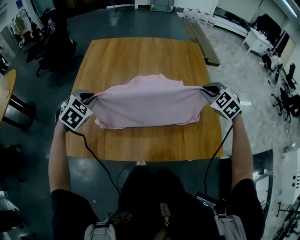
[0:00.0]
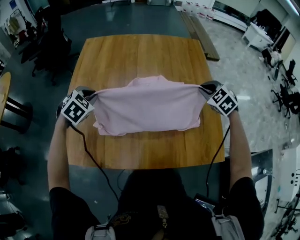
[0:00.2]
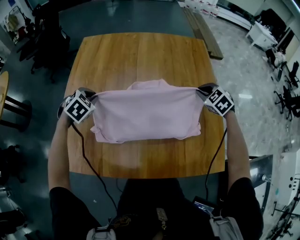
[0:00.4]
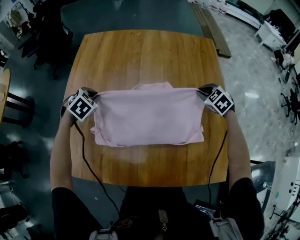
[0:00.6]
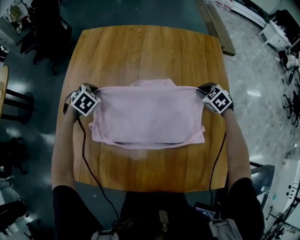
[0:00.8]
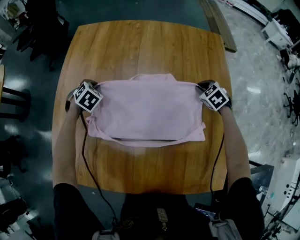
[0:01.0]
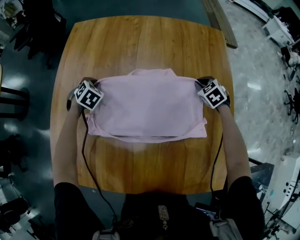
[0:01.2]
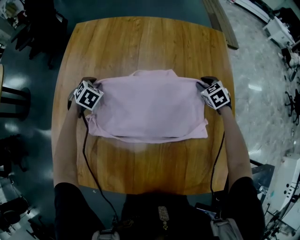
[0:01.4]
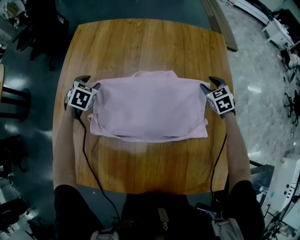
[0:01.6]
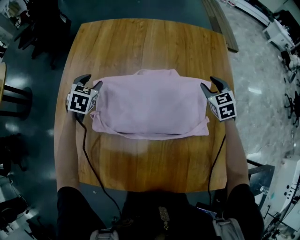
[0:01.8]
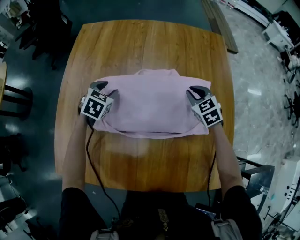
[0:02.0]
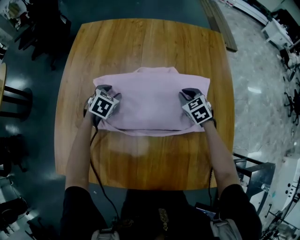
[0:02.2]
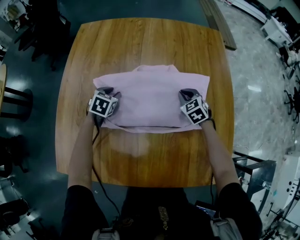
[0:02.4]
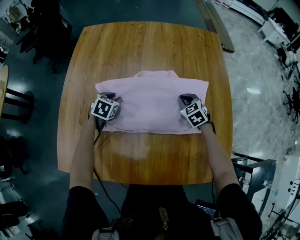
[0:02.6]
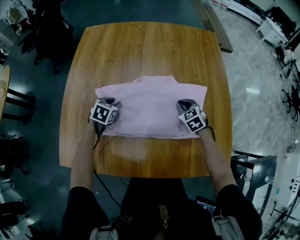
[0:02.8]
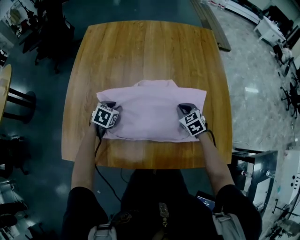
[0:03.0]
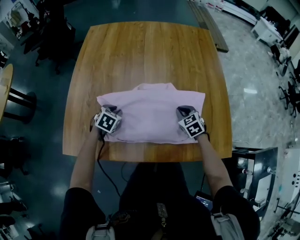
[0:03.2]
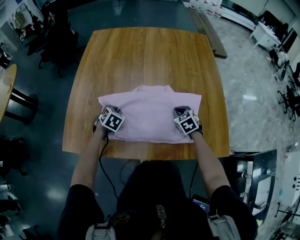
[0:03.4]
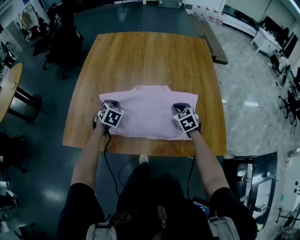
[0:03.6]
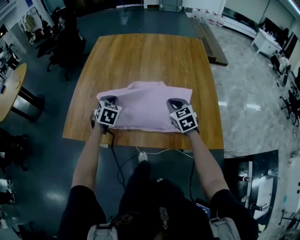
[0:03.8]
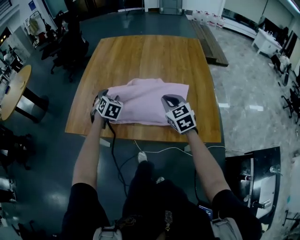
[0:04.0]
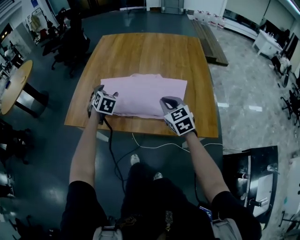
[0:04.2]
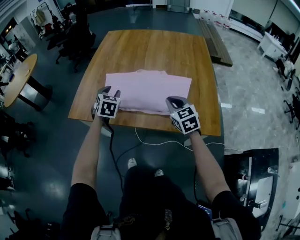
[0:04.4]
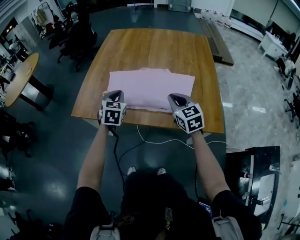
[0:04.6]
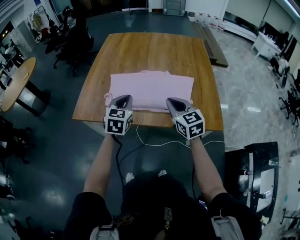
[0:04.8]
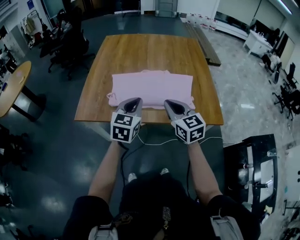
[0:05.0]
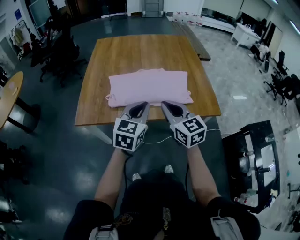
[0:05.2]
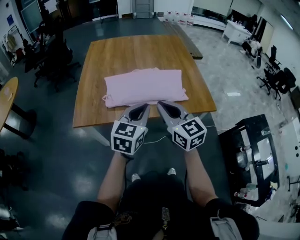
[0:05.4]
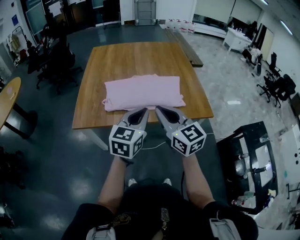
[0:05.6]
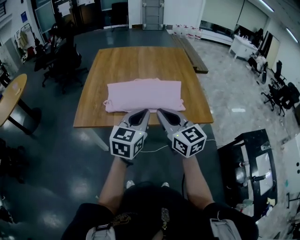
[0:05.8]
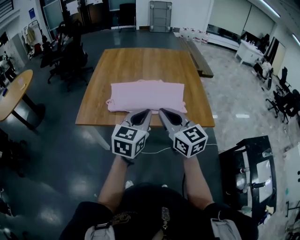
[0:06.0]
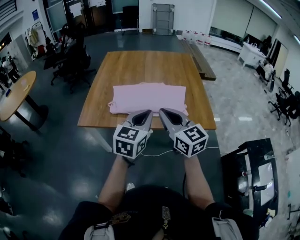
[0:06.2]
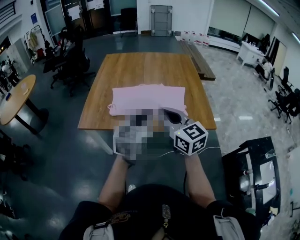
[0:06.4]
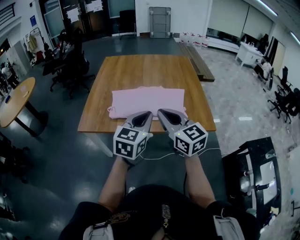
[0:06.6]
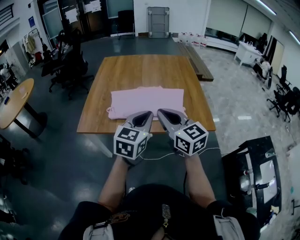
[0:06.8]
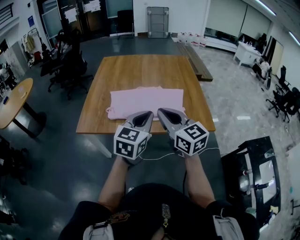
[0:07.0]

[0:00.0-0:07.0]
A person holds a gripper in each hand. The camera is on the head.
0:00.0 to 0:01.4: The grippers both shift forward and downward by about 35 cm. The right gripper changes its angle by about 20 degrees.
0:01.4 to 0:02.8: The left gripper travels backward by approximately 15 cm, and swivels about 20 degrees, while the right gripper heads backward and to the left, covering approximately 20 cm, and opens and closes again.
0:02.8 to 0:04.2: The two grippers go some 30 cm backward and upward. The left gripper turns by approximately 30 degrees, and opens its fingers, while the right gripper rotates about 20 degrees.
0:04.2 to 0:05.6: The left gripper shifts by some 30 cm, changes its angle by about 50 degrees, and closes its fingers. Meanwhile the right gripper moves about 30 cm, and turns by roughly 20 degrees.
0:05.6 to 0:07.0: The grippers stay close to where they were, moving slightly.

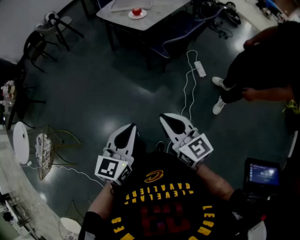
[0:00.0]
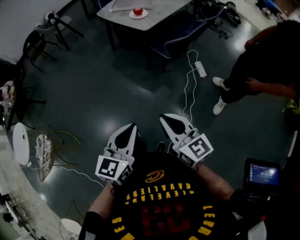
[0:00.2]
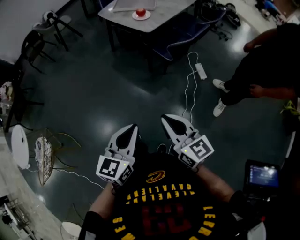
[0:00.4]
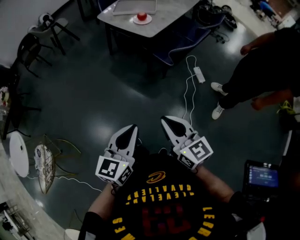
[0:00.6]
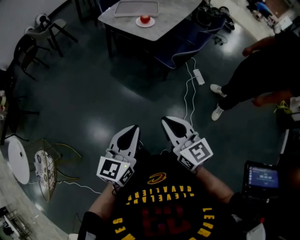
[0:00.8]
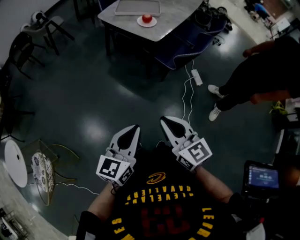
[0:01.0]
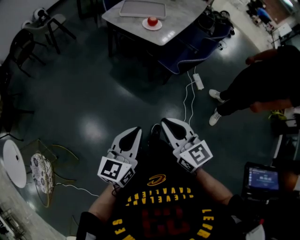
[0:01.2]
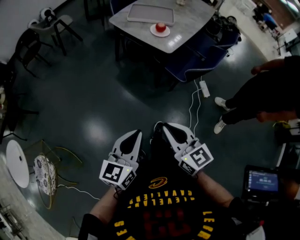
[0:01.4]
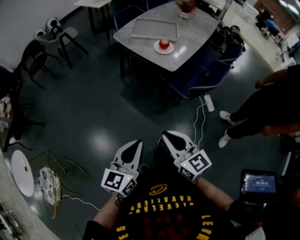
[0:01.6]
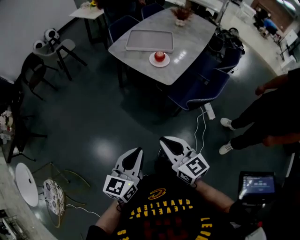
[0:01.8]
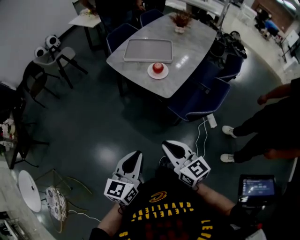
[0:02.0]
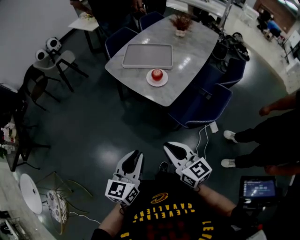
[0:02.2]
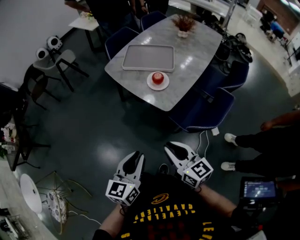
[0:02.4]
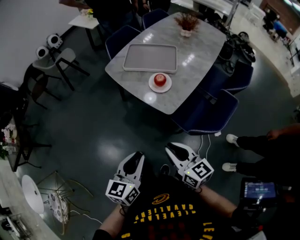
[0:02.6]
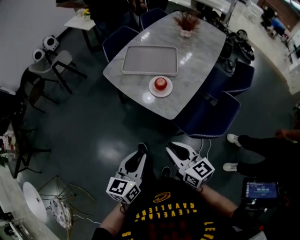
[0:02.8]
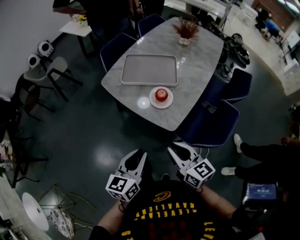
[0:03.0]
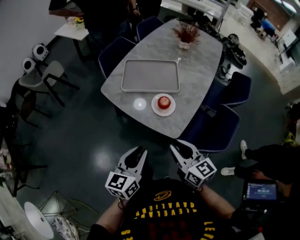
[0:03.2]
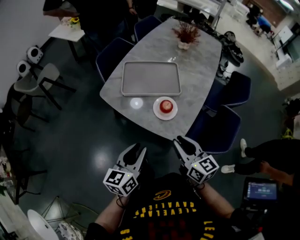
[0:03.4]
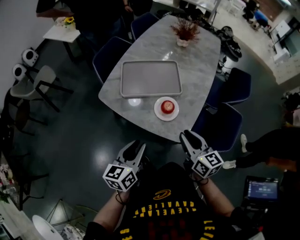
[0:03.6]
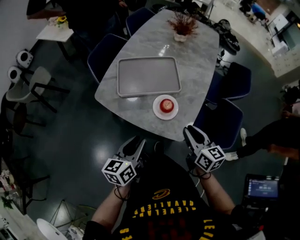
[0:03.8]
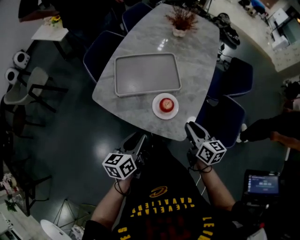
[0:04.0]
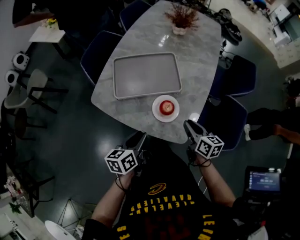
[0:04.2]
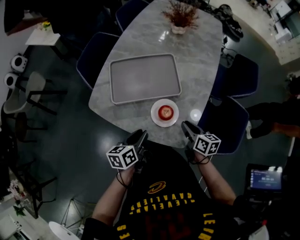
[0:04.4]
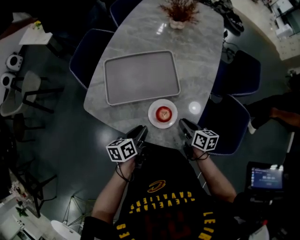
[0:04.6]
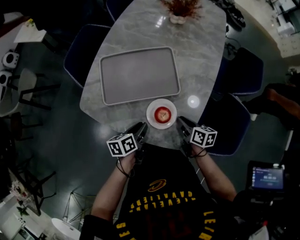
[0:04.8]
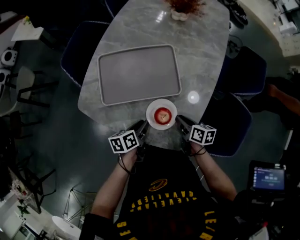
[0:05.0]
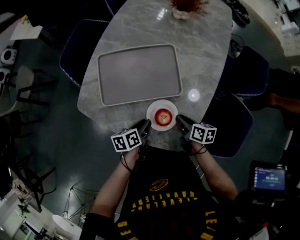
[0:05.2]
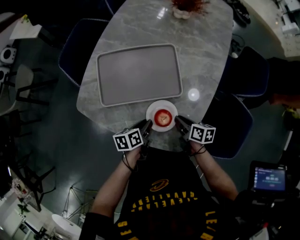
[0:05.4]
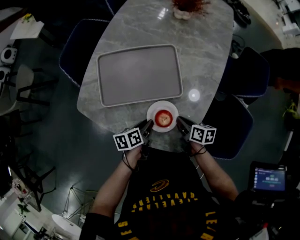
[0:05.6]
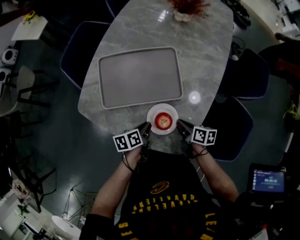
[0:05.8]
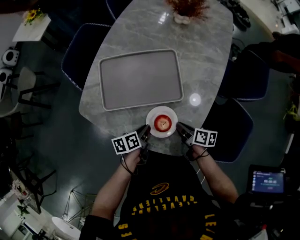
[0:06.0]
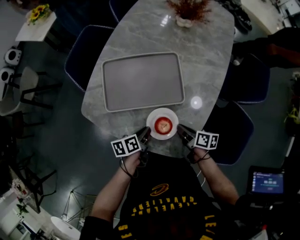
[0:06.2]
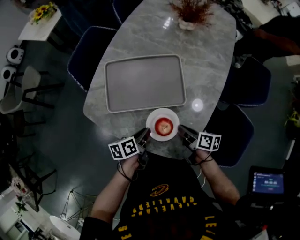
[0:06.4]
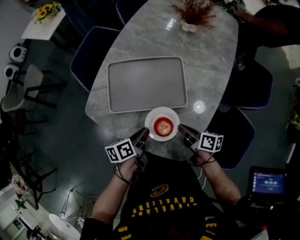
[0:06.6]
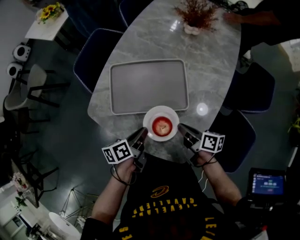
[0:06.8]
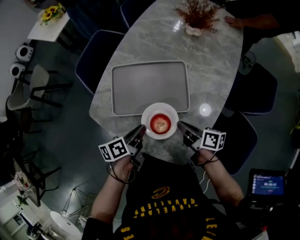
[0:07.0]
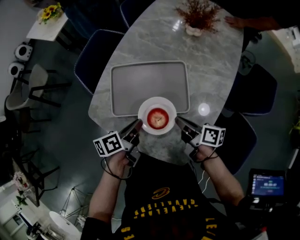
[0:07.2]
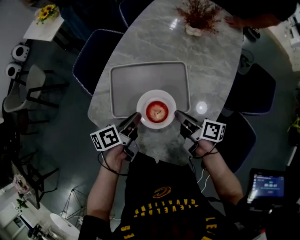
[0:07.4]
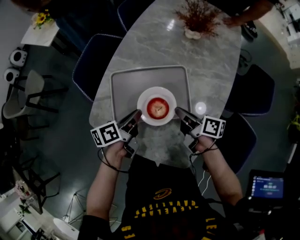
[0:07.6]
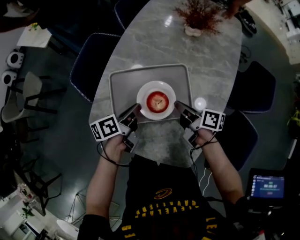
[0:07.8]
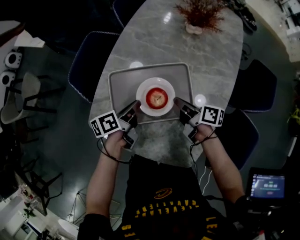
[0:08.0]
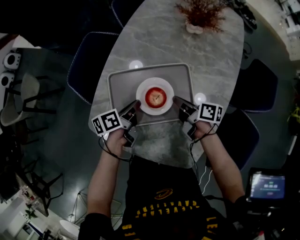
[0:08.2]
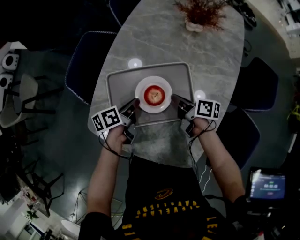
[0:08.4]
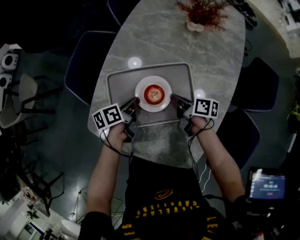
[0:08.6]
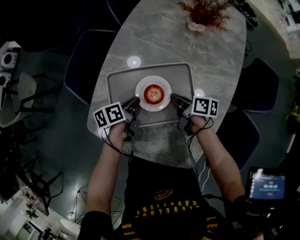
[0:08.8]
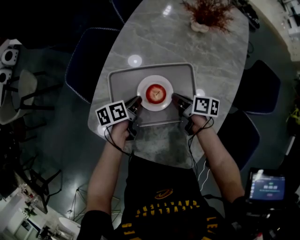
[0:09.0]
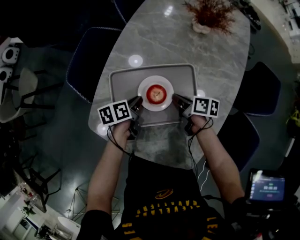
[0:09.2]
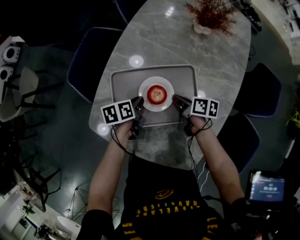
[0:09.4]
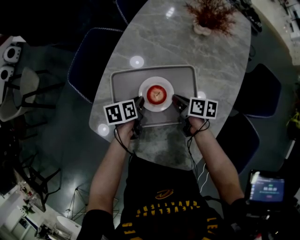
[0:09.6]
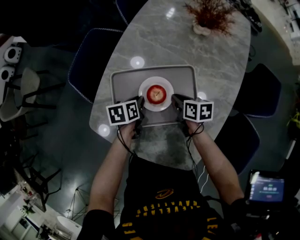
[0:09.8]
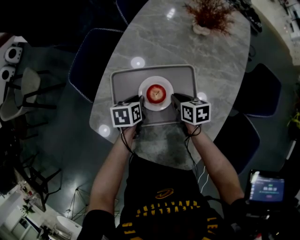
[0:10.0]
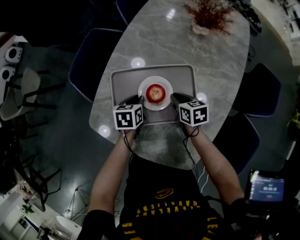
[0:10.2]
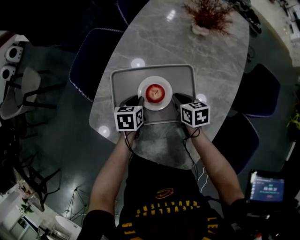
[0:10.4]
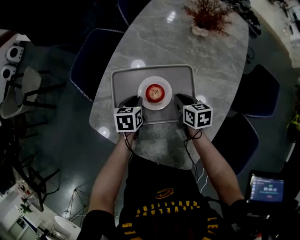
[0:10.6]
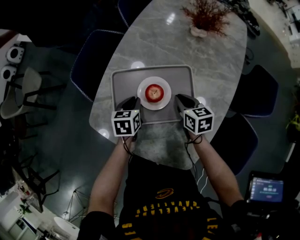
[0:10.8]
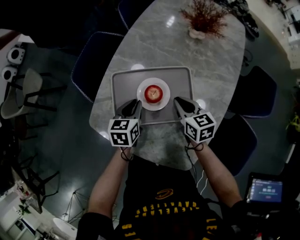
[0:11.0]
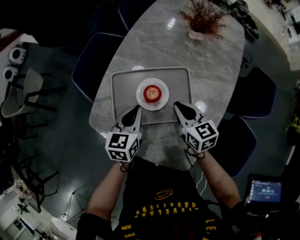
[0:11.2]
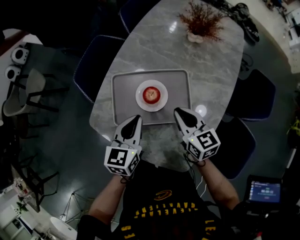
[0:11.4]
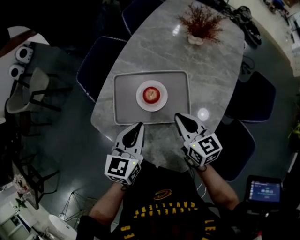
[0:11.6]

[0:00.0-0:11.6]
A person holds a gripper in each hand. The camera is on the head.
0:00.0 to 0:01.4: Both grippers travel together forward and to the left, some 25 cm.
0:01.4 to 0:02.8: The grippers both shift forward by roughly 30 cm.
0:02.8 to 0:04.4: The left gripper changes place by some 35 cm, and rotates about 30 degrees. Meanwhile the right gripper moves about 30 cm, and swivels about 40 degrees.
0:04.4 to 0:05.8: The left gripper is displaced downward and forward by about 15 cm, and rotates roughly 20 degrees; the right gripper goes roughly 10 cm downward, and turns by roughly 20 degrees.
0:05.8 to 0:07.2: Both grippers move upward, forward and to the left, roughly 15 cm. The right gripper changes its angle by approximately 20 degrees.
0:07.2 to 0:08.8: The grippers both shift forward and downward by about 15 cm.
0:08.8 to 0:10.2: The right gripper rotates some 40 degrees, while the left gripper turns by approximately 40 degrees.
0:10.2 to 0:11.6: Both grippers move upward and backward, approximately 20 cm. The left gripper angles its fingers upward, by approximately 30 degrees, while the right gripper turns by some 30 degrees.

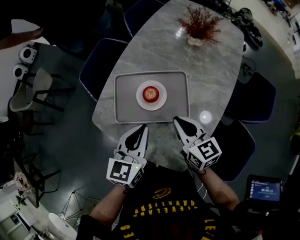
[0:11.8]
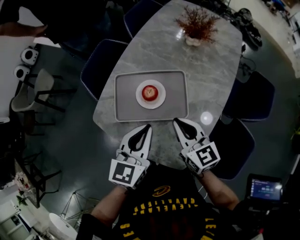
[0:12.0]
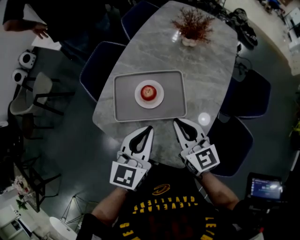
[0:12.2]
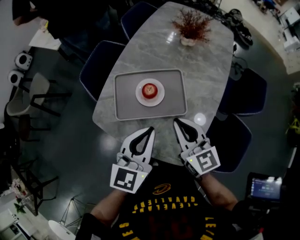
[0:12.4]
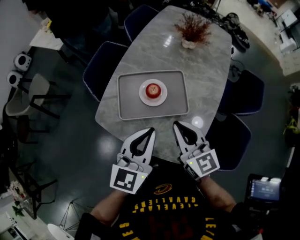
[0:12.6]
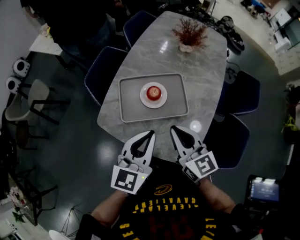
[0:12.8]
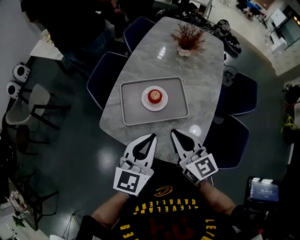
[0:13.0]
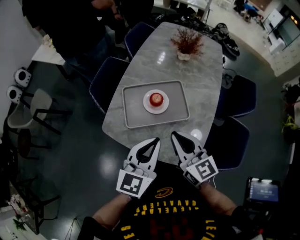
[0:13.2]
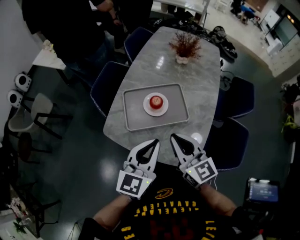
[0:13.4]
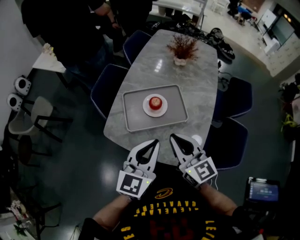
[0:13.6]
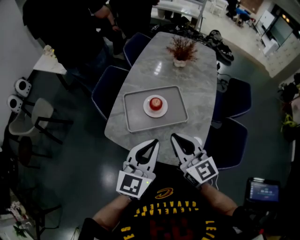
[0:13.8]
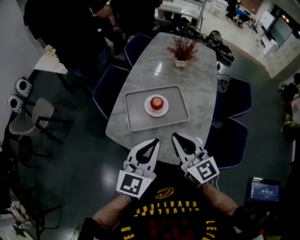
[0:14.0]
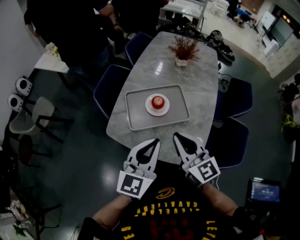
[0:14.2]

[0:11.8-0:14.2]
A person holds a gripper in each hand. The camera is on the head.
0:11.8 to 0:13.0: The right gripper heads upward, backward and to the left, covering roughly 15 cm. The left gripper goes some 10 cm backward and upward.
0:13.0 to 0:14.2: The right gripper moves about 5 cm.

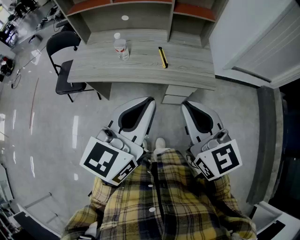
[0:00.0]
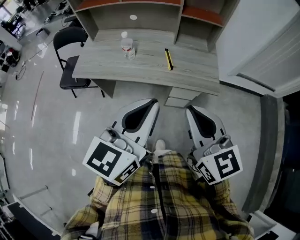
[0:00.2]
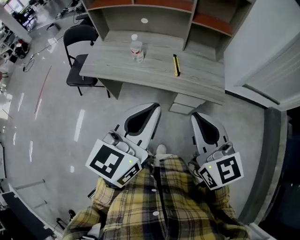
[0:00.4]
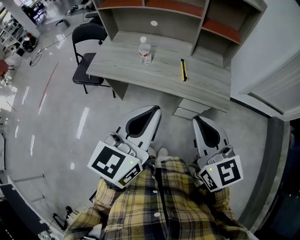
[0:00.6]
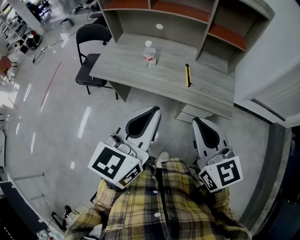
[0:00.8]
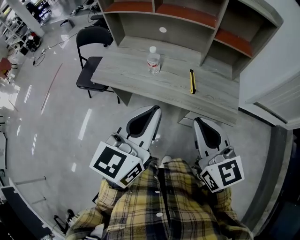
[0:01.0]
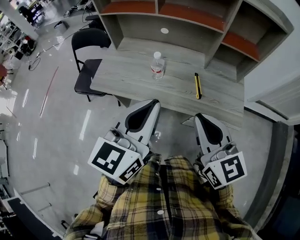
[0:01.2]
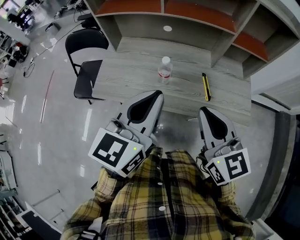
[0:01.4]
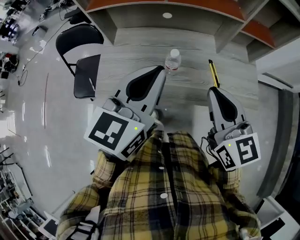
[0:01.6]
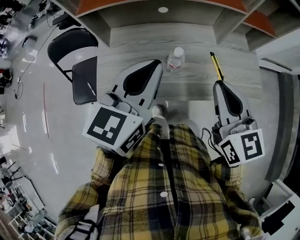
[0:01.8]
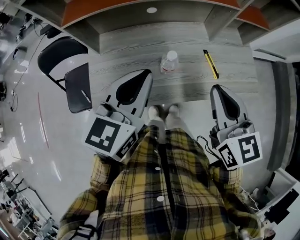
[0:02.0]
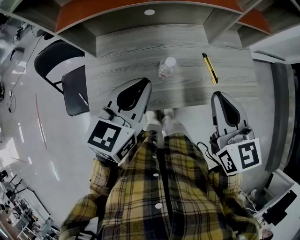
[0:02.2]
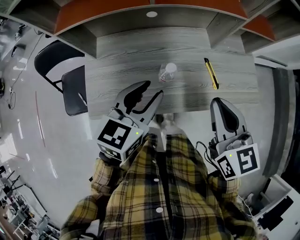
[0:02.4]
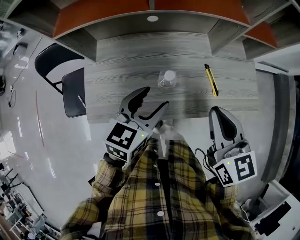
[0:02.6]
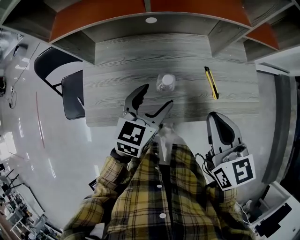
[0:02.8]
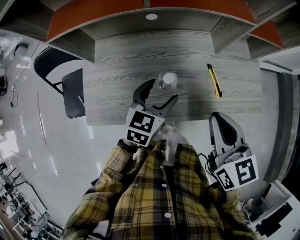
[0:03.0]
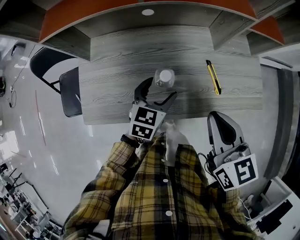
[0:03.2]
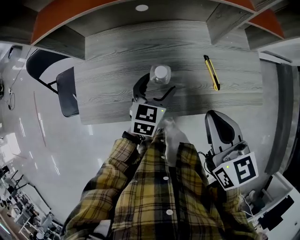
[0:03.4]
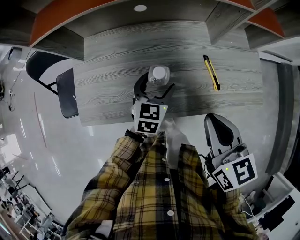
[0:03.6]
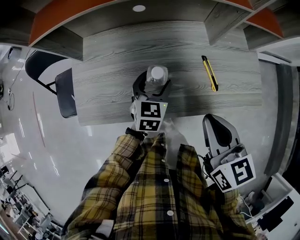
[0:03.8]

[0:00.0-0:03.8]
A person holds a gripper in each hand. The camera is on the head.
0:00.0 to 0:01.2: The grippers both shift forward and to the left by roughly 15 cm.
0:01.2 to 0:02.6: The right gripper shifts by roughly 20 cm, and rotates approximately 30 degrees, while the left gripper changes place by about 30 cm, turns by roughly 30 degrees, and opens up.
0:02.6 to 0:03.8: The right gripper moves downward, approximately 5 cm, while the left gripper moves downward and forward, some 15 cm.
